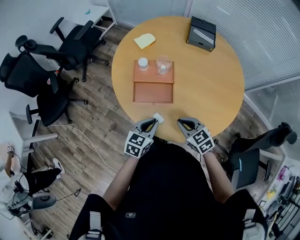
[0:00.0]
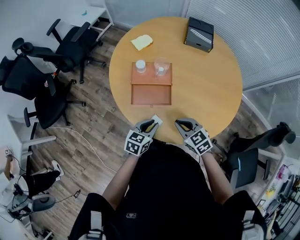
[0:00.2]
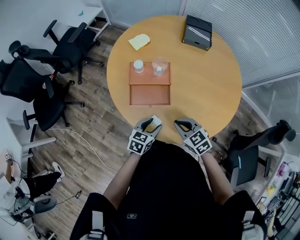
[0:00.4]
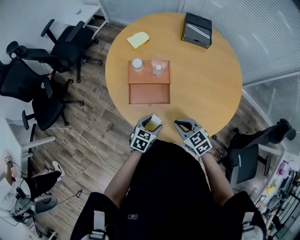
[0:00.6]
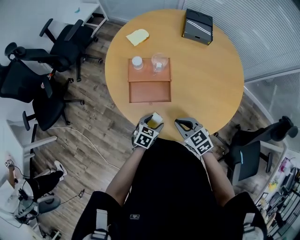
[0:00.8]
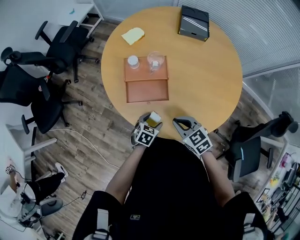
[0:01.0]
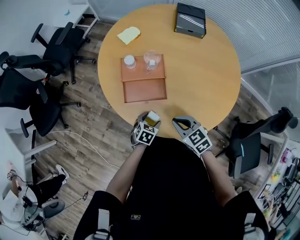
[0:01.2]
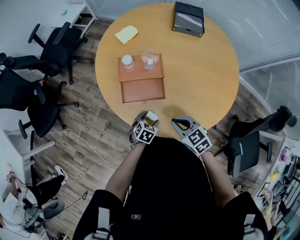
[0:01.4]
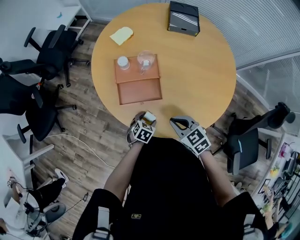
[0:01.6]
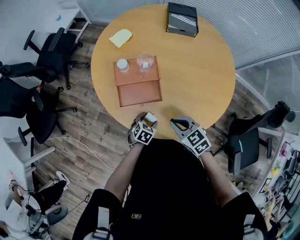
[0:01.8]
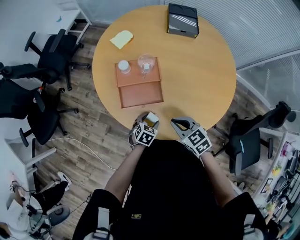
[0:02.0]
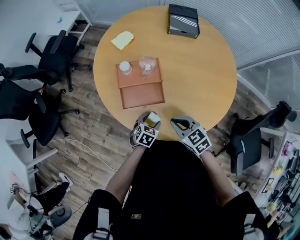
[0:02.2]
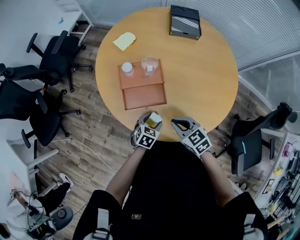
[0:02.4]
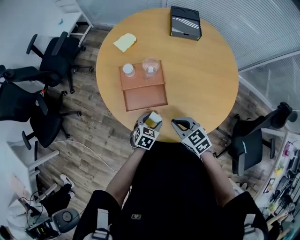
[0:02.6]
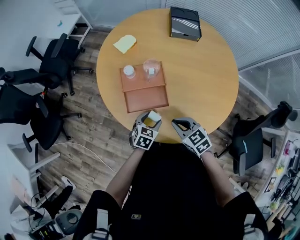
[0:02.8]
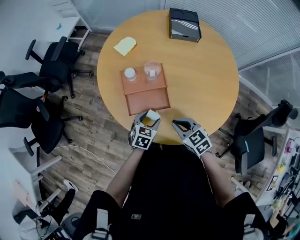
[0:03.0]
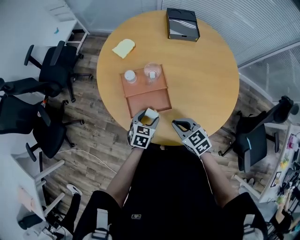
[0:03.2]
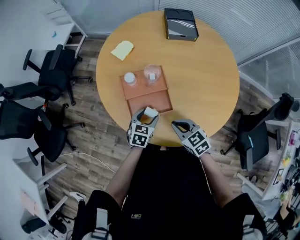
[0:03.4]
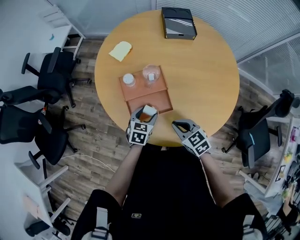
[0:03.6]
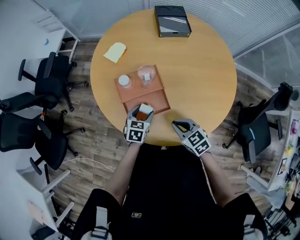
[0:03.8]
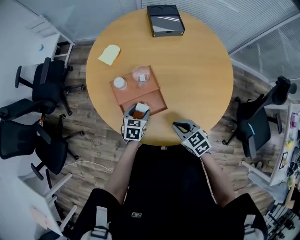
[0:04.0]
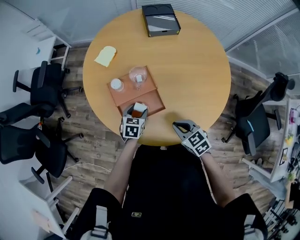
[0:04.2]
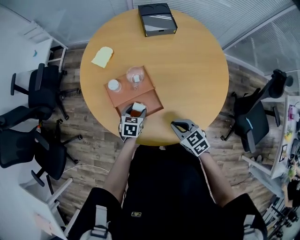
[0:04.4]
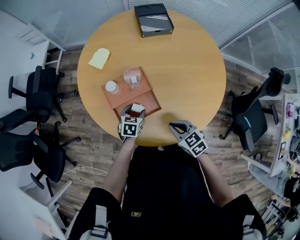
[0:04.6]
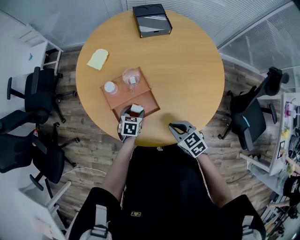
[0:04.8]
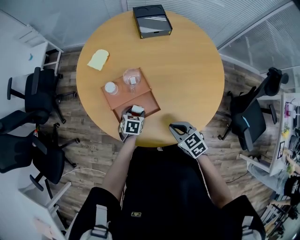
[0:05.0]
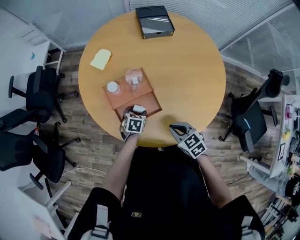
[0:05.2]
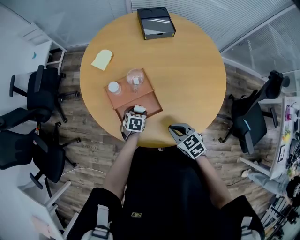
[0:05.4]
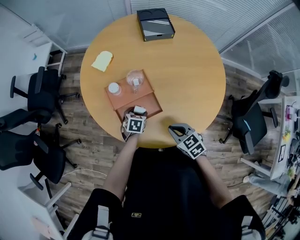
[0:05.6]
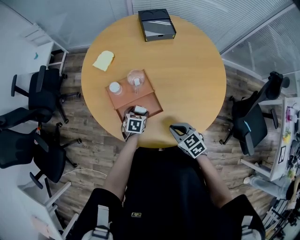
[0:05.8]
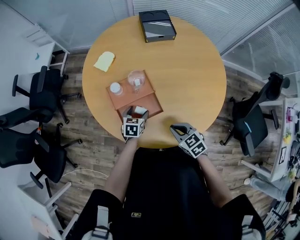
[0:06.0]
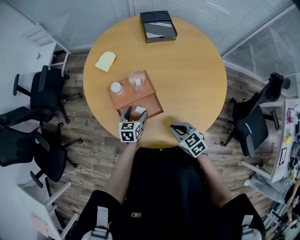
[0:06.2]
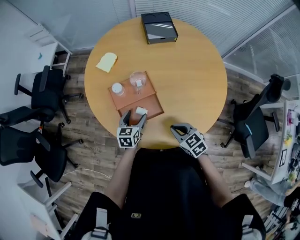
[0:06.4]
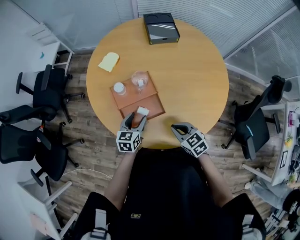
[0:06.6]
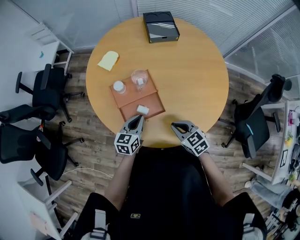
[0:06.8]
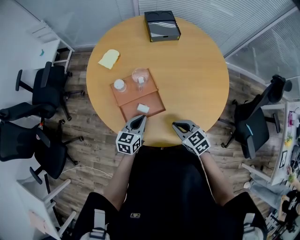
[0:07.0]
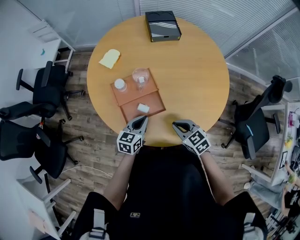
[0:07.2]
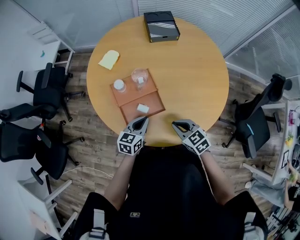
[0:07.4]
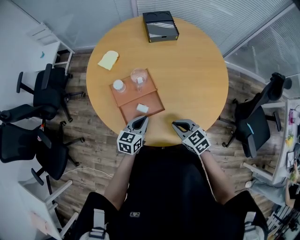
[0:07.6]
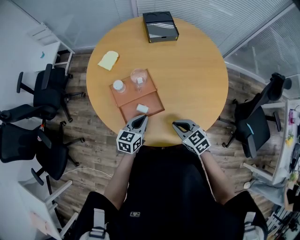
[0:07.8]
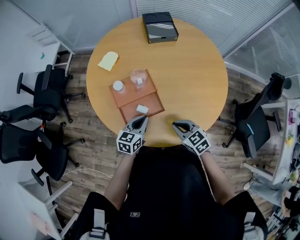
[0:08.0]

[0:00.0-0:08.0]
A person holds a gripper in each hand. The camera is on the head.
0:00.0 to 0:01.6: The left gripper is displaced downward by some 15 cm, turns by roughly 30 degrees, and opens its fingers.
0:01.6 to 0:03.2: The right gripper shifts by approximately 5 cm. The left gripper is displaced upward and forward by roughly 10 cm.
0:03.2 to 0:04.8: The left gripper goes approximately 10 cm downward and forward.
0:04.8 to 0:06.4: The left gripper goes about 5 cm upward, and swivels approximately 20 degrees.
0:06.4 to 0:08.0: The left gripper moves some 10 cm, and closes up.

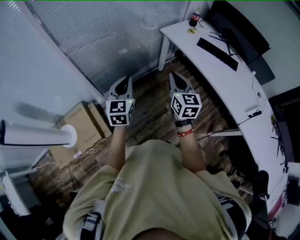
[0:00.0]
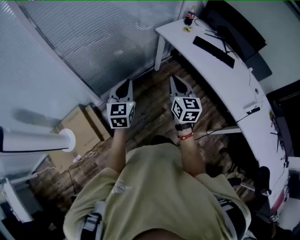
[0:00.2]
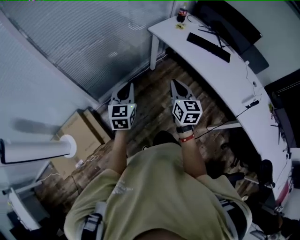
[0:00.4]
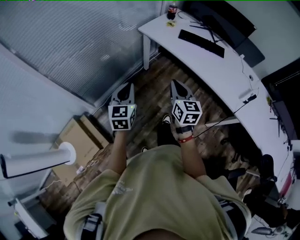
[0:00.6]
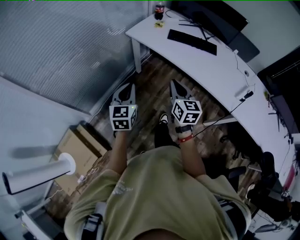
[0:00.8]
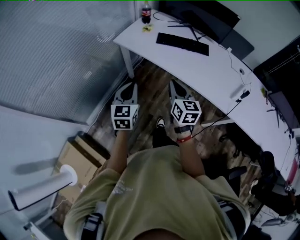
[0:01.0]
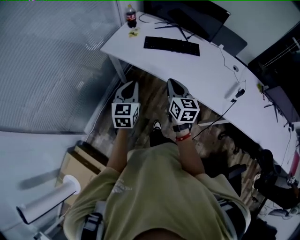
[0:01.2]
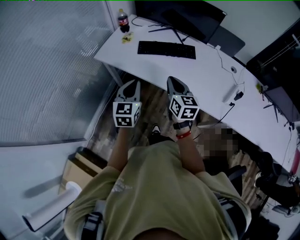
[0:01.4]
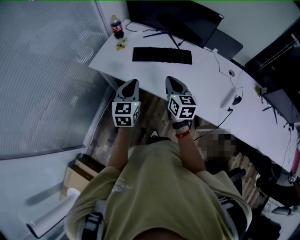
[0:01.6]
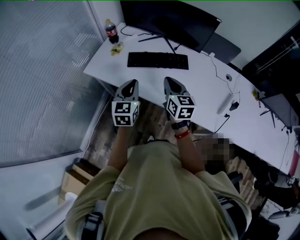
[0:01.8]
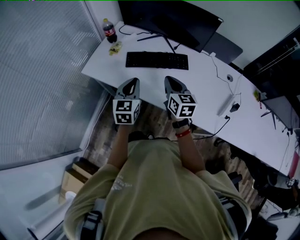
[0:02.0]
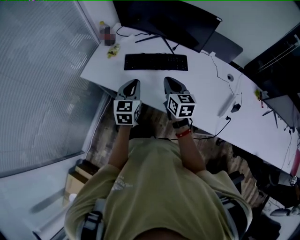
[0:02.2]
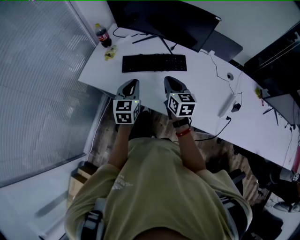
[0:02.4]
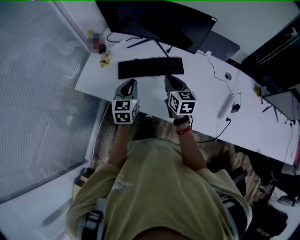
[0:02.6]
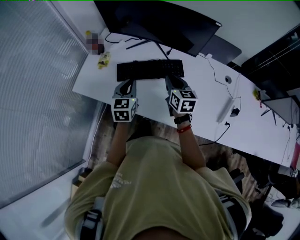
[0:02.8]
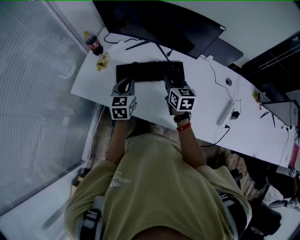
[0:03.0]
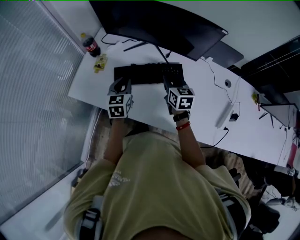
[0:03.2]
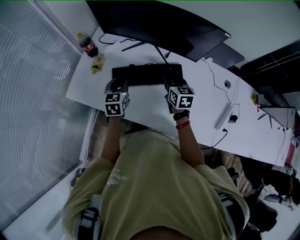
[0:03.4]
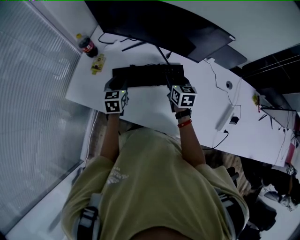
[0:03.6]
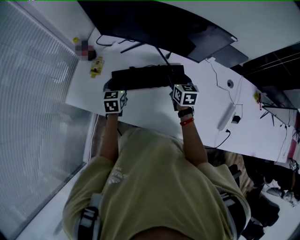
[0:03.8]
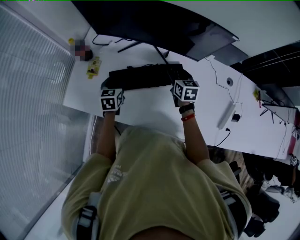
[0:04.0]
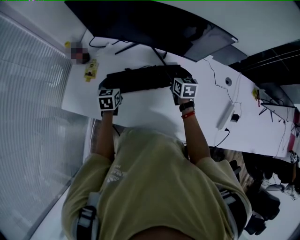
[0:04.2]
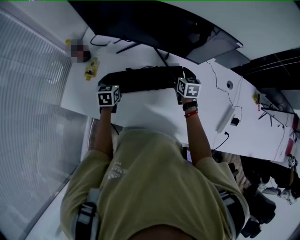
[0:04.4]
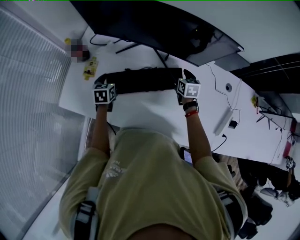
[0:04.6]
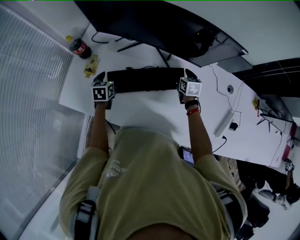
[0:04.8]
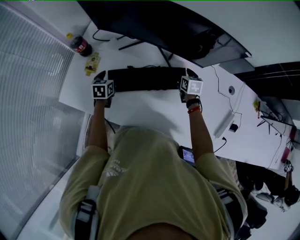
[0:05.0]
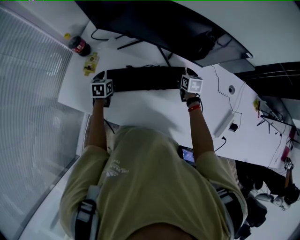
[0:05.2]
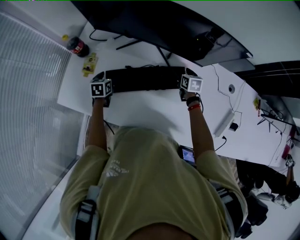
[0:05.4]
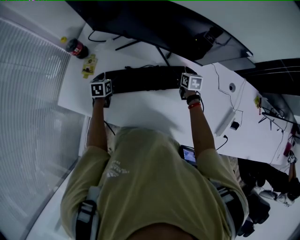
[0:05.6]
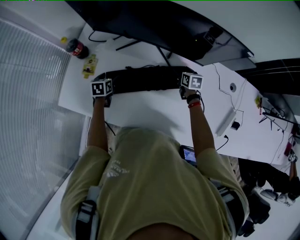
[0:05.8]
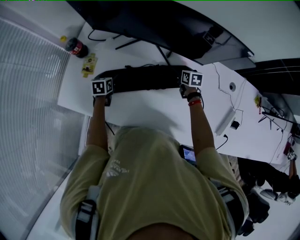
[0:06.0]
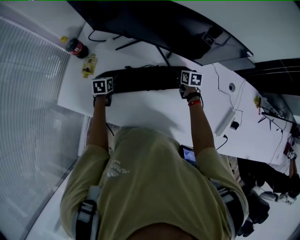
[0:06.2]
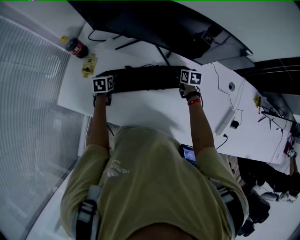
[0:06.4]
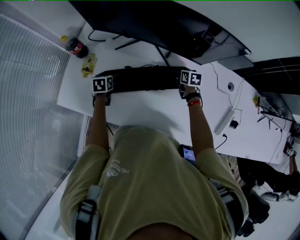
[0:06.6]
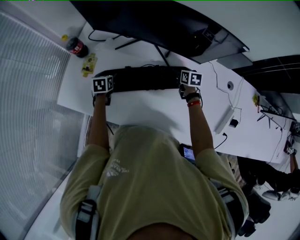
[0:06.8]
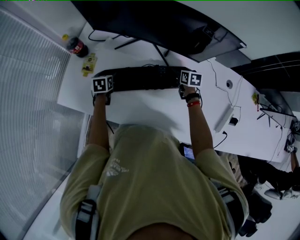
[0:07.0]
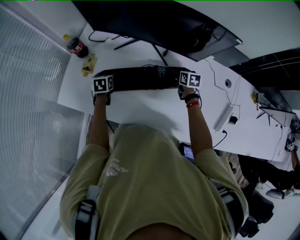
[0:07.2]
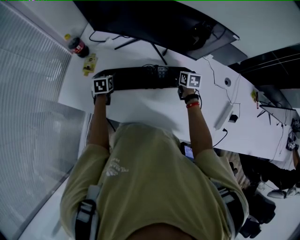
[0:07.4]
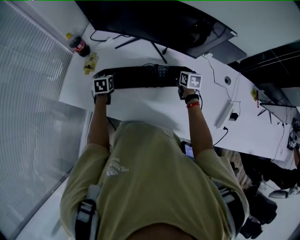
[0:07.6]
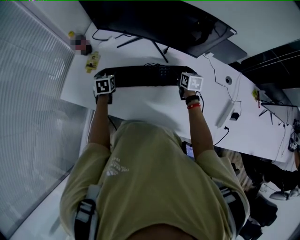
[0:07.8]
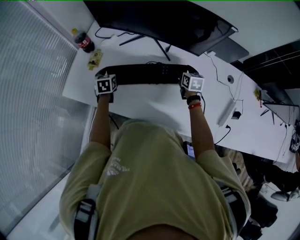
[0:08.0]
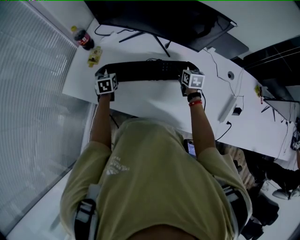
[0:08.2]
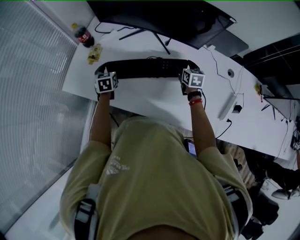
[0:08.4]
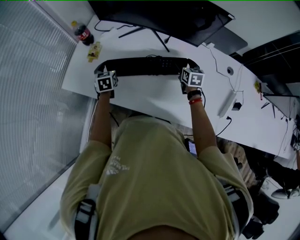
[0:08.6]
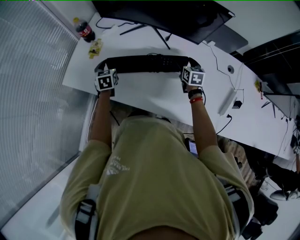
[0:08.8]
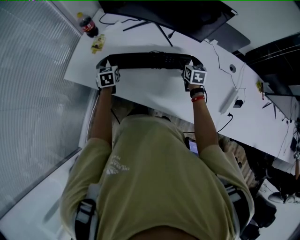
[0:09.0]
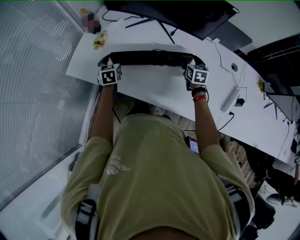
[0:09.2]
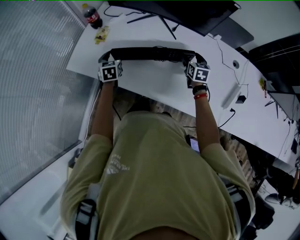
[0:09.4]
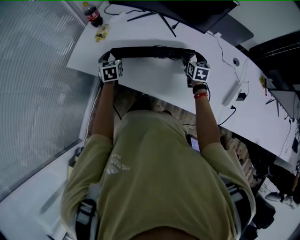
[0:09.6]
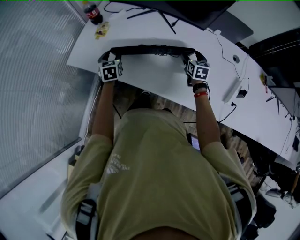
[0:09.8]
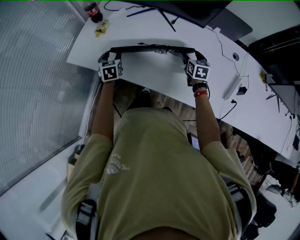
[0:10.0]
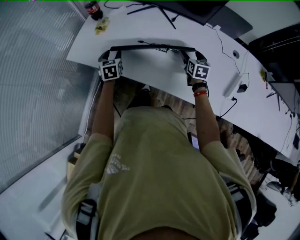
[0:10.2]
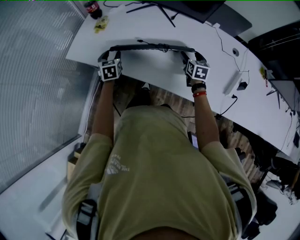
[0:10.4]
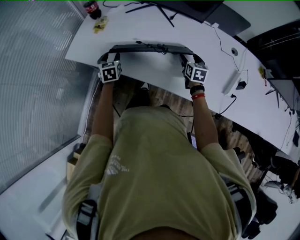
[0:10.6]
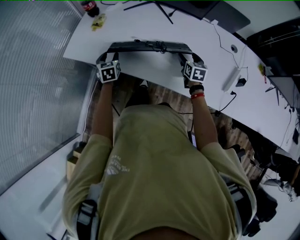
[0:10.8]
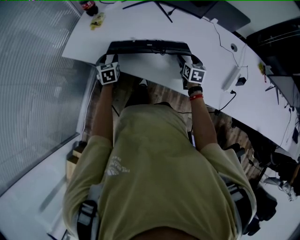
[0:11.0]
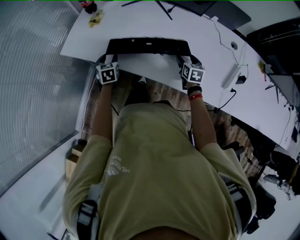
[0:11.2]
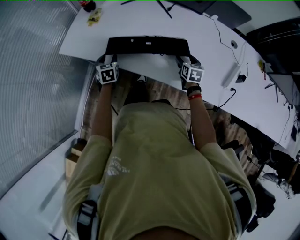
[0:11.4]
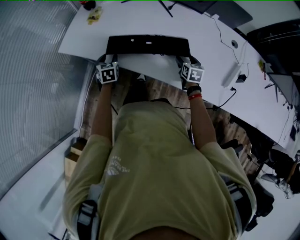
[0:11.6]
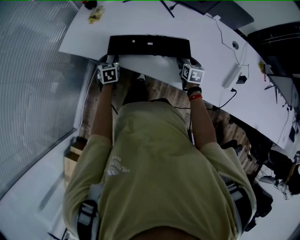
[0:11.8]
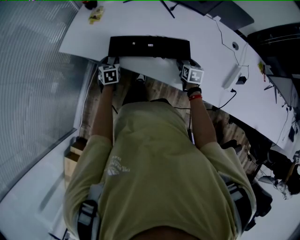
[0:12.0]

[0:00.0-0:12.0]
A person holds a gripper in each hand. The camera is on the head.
0:00.0 to 0:01.6: The two grippers travel together, about 50 cm. The right gripper rotates some 30 degrees. Meanwhile the left gripper turns by roughly 30 degrees.
0:01.6 to 0:03.0: Both grippers move forward, some 25 cm.
0:03.0 to 0:04.4: The left gripper travels forward and downward by approximately 20 cm, and opens its fingers. Meanwhile the right gripper goes roughly 20 cm forward, downward and to the right, and opens up.
0:04.4 to 0:06.0: The two grippers go approximately 10 cm downward.
0:06.0 to 0:07.6: The left gripper is displaced upward by roughly 5 cm; the right gripper heads backward and upward, covering roughly 10 cm.
0:07.6 to 0:09.0: Both grippers travel together backward, about 5 cm.
0:09.0 to 0:10.4: Both grippers move backward, approximately 10 cm.
0:10.4 to 0:12.0: Both grippers move downward and backward, approximately 10 cm.

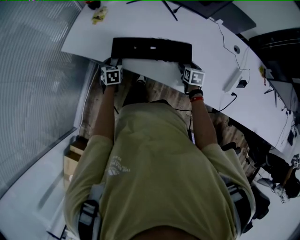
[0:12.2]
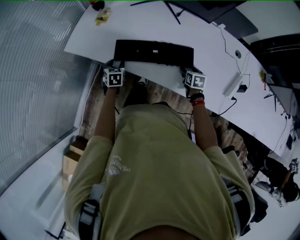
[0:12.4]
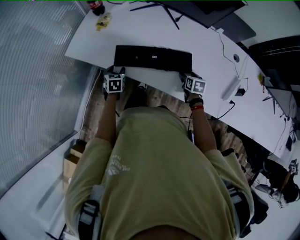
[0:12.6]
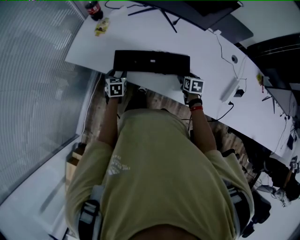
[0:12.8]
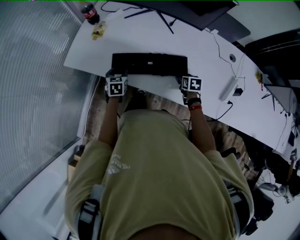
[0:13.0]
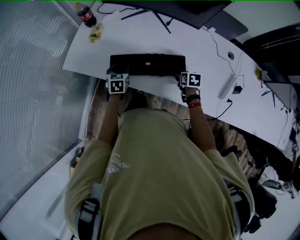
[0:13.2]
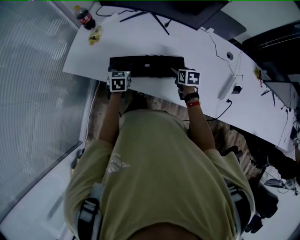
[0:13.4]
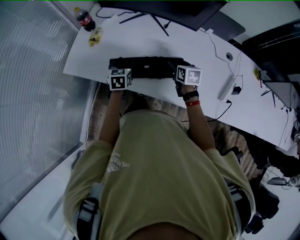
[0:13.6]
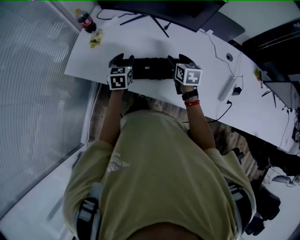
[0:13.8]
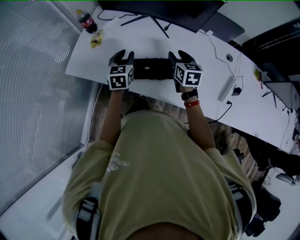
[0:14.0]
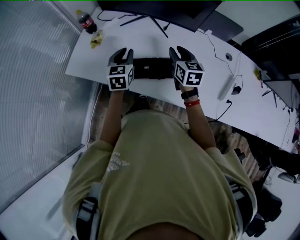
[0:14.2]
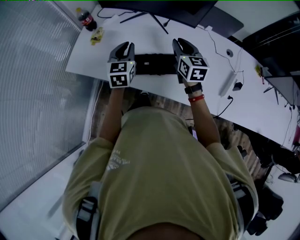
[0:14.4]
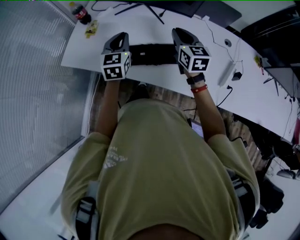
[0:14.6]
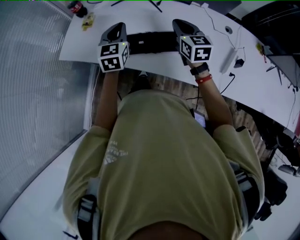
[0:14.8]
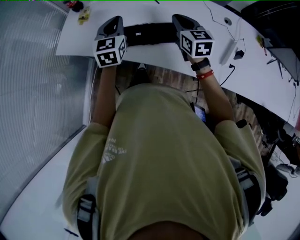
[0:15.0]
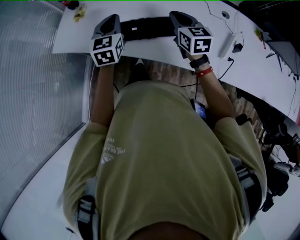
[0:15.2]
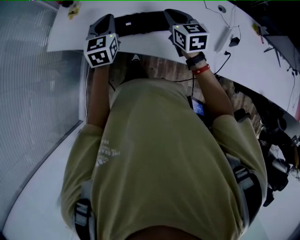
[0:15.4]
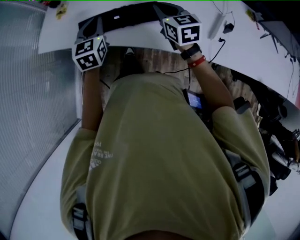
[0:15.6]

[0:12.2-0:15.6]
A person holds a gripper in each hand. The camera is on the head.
0:12.2 to 0:13.8: The left gripper travels upward, to the right and forward by approximately 20 cm. Meanwhile the right gripper travels upward and forward by about 20 cm.
0:13.8 to 0:15.6: Both grippers move backward and upward, about 10 cm. The left gripper closes, while the right gripper closes up.
